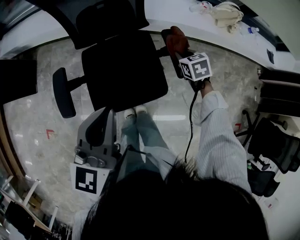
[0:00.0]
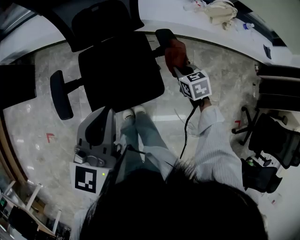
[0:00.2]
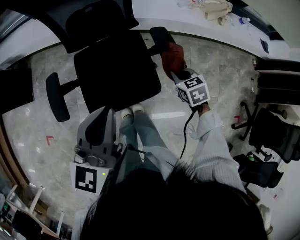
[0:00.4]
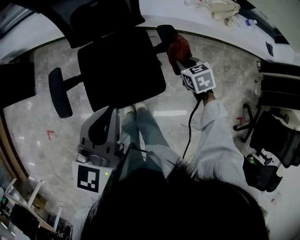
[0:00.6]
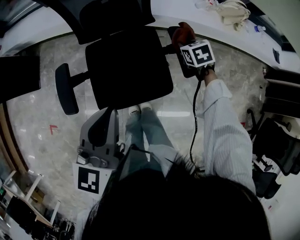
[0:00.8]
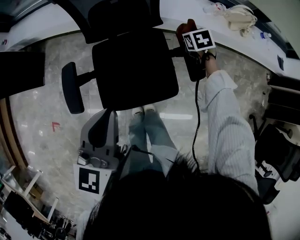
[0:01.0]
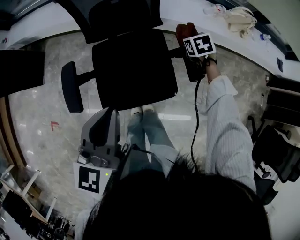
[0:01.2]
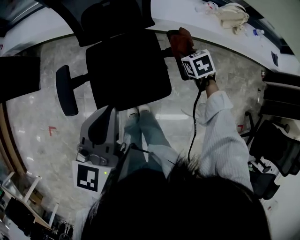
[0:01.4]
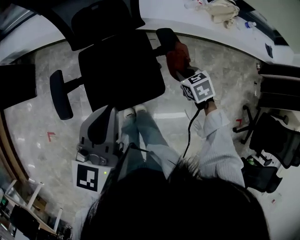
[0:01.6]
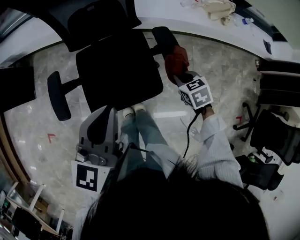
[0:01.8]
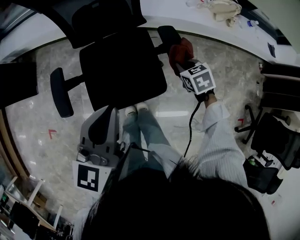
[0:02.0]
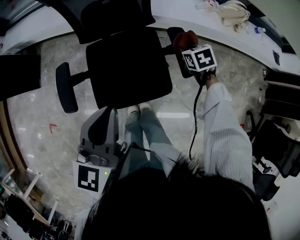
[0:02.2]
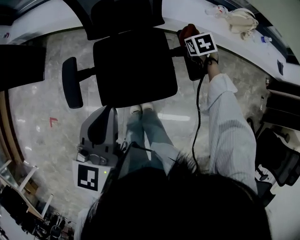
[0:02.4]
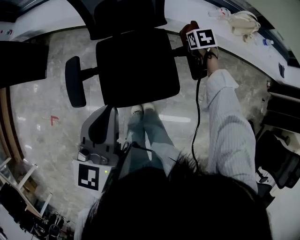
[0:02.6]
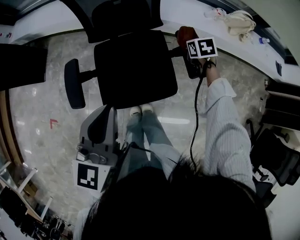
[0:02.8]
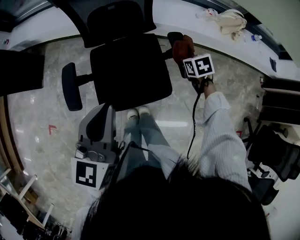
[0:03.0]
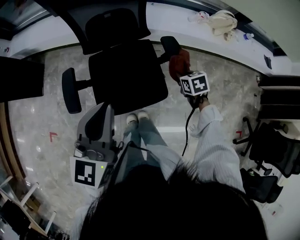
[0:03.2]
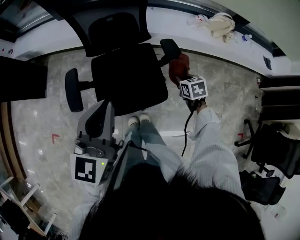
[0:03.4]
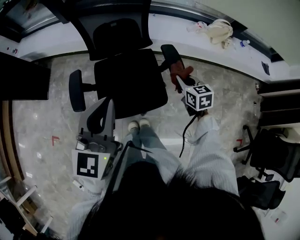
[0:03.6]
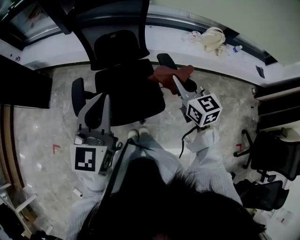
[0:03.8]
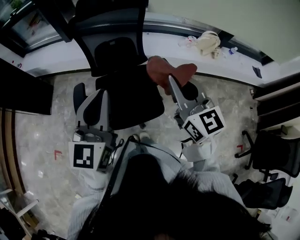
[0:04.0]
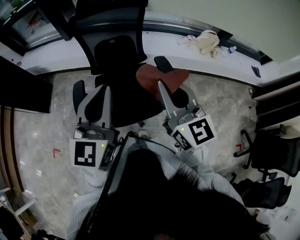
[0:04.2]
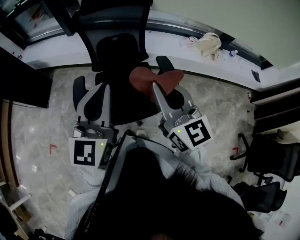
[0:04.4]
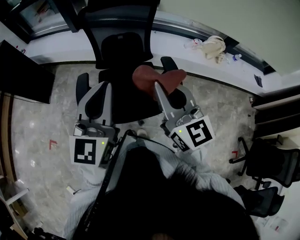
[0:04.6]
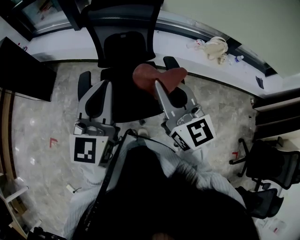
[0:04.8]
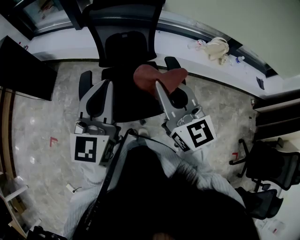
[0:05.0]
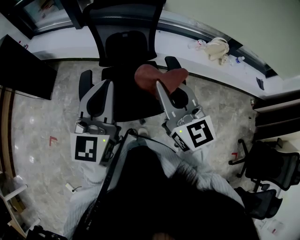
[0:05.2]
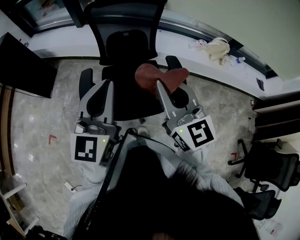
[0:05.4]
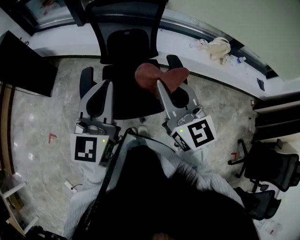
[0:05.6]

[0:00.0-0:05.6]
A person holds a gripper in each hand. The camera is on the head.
0:00.0 to 0:01.4: The right gripper moves forward and backward over some 20 cm, changing direction 2 times.
0:01.4 to 0:02.8: The right gripper moves some 10 cm backward and comes back.
0:02.8 to 0:04.2: The left gripper is displaced upward by some 15 cm, and swivels about 20 degrees. Meanwhile the right gripper goes roughly 50 cm upward and backward, and tips its fingers upward by approximately 60 degrees.
0:04.2 to 0:05.6: The grippers both shift to the left by some 5 cm.

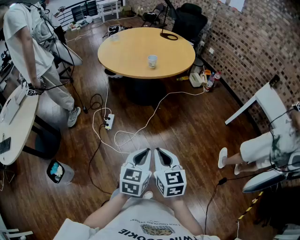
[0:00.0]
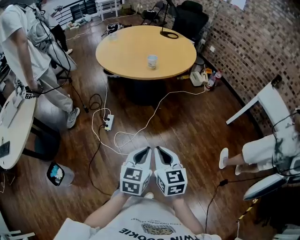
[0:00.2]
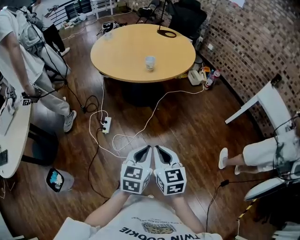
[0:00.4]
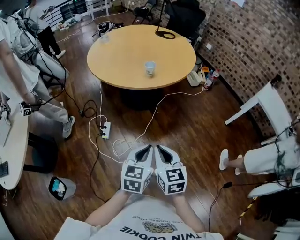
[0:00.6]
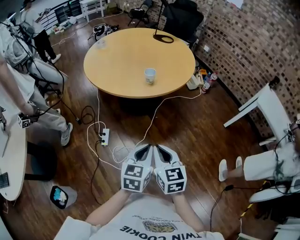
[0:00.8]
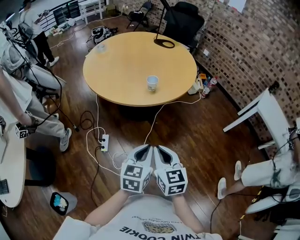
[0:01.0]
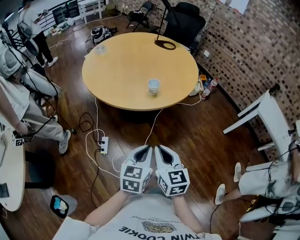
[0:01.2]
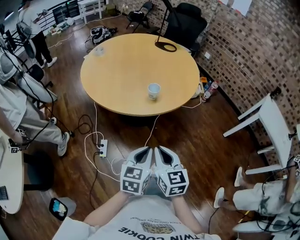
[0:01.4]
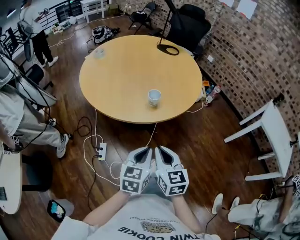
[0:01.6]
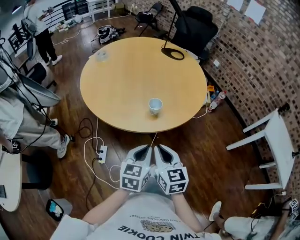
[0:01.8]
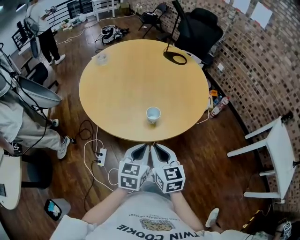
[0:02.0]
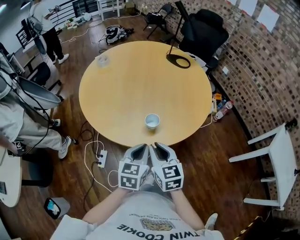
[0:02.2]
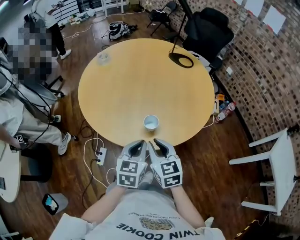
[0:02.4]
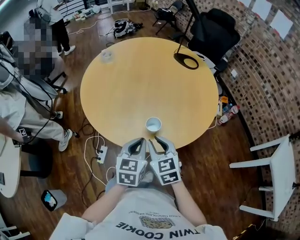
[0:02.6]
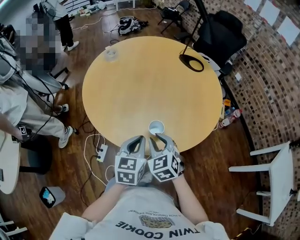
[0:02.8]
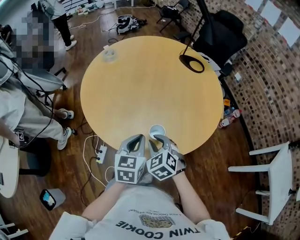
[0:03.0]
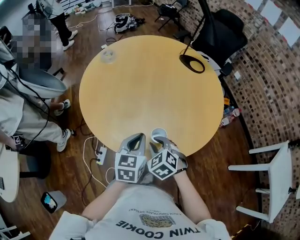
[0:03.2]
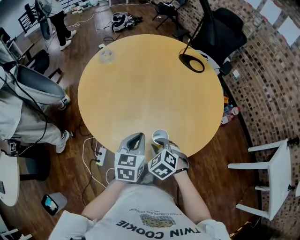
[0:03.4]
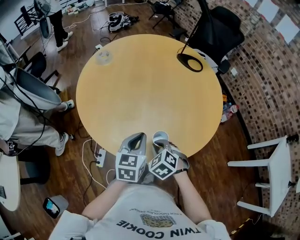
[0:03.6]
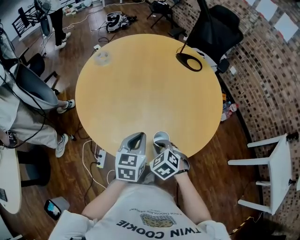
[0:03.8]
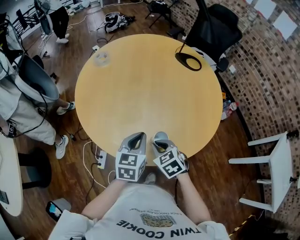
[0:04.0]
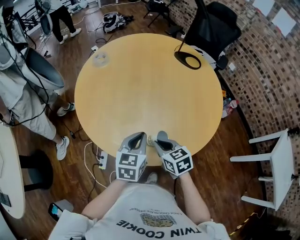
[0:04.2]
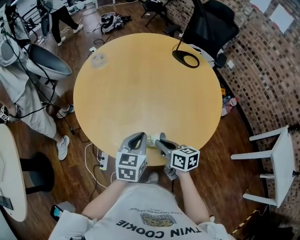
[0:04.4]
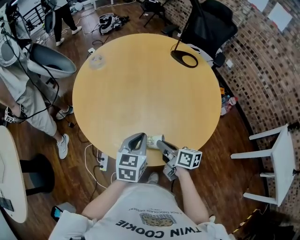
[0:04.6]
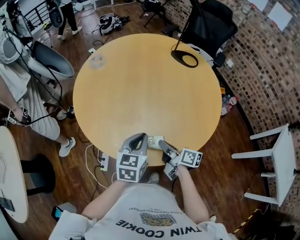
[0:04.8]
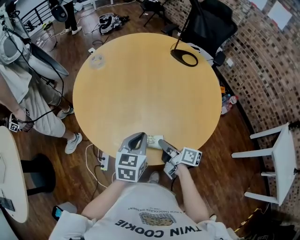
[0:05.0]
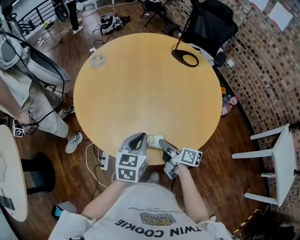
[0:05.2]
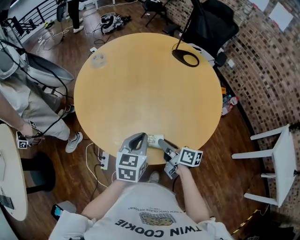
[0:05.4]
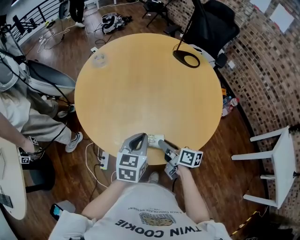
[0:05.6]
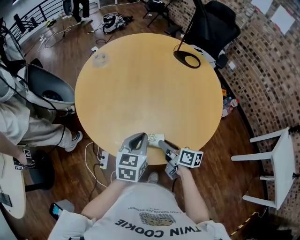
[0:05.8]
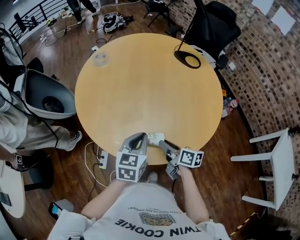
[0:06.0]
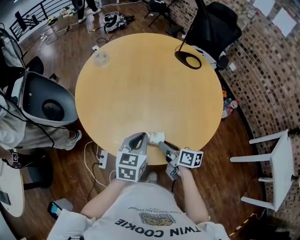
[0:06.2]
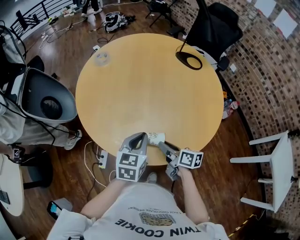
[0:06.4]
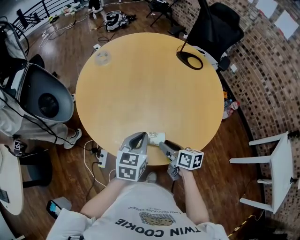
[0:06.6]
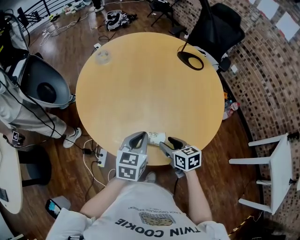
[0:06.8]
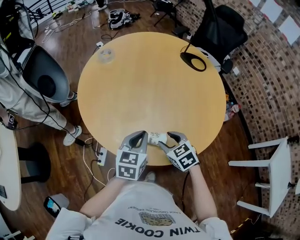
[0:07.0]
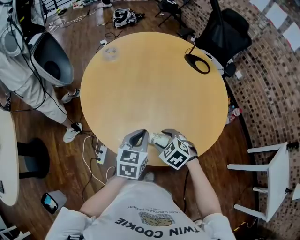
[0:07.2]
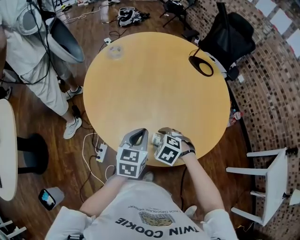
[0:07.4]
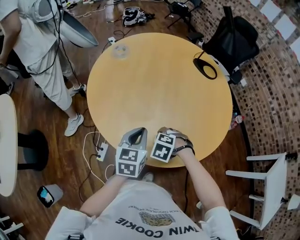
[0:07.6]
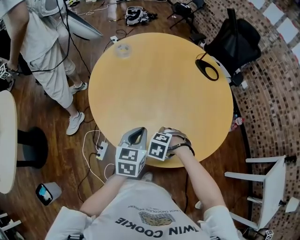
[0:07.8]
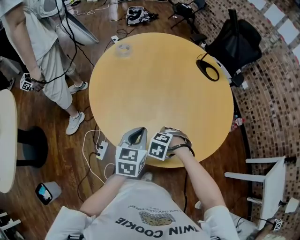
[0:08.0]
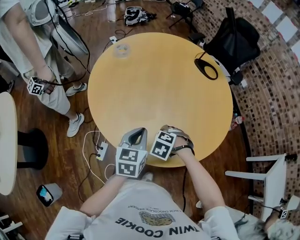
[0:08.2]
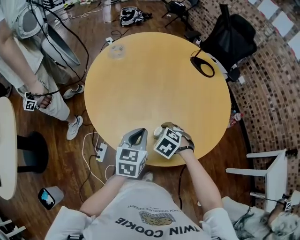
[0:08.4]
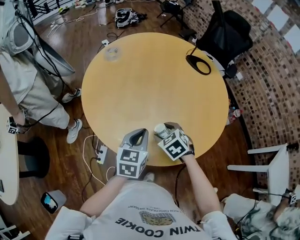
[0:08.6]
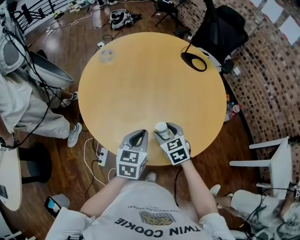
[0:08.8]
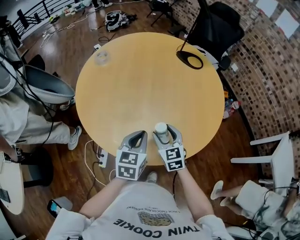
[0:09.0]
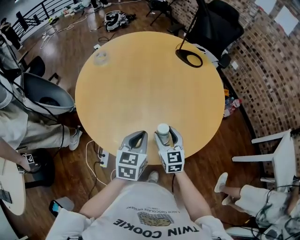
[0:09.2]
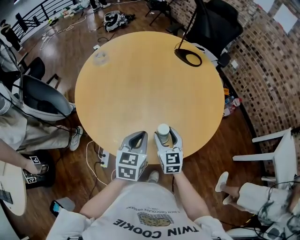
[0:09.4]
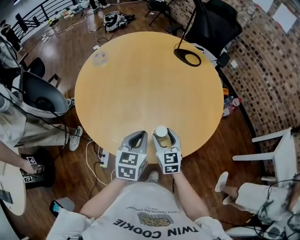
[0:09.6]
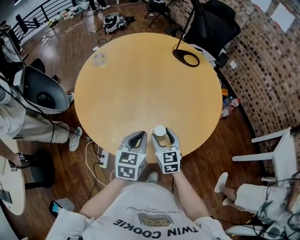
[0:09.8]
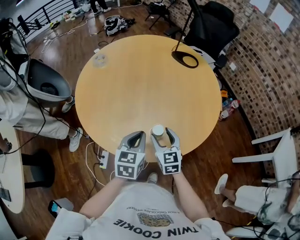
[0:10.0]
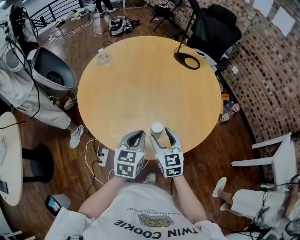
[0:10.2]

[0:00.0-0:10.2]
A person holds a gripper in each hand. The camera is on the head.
0:00.0 to 0:01.4: Both grippers move forward, some 35 cm.
0:01.4 to 0:03.0: The two grippers go approximately 35 cm forward. The right gripper rotates around the line of its fingers by some 40 degrees, counterclockwise from behind. Meanwhile the left gripper rotates about 20 degrees.
0:03.0 to 0:04.4: The right gripper shifts by approximately 5 cm, and twists roughly 60 degrees clockwise, seen from behind. The left gripper moves forward, roughly 5 cm.
0:04.4 to 0:05.8: The right gripper rotates roughly 20 degrees.
0:05.8 to 0:07.2: The right gripper shifts about 5 cm to the left, rolls counterclockwise, seen from behind, by approximately 80 degrees, and opens.
0:07.2 to 0:08.8: The right gripper changes its angle by roughly 30 degrees.
0:08.8 to 0:10.2: The right gripper is displaced backward by roughly 5 cm, and rotates some 20 degrees; the left gripper moves some 5 cm.

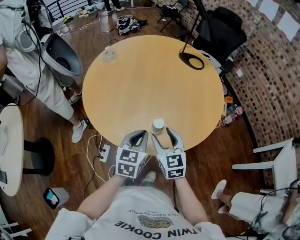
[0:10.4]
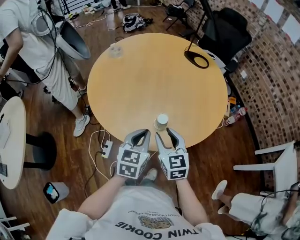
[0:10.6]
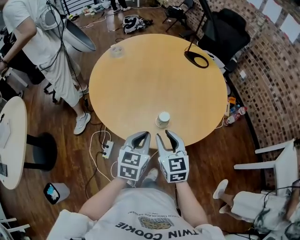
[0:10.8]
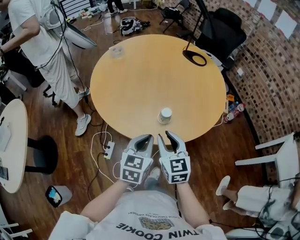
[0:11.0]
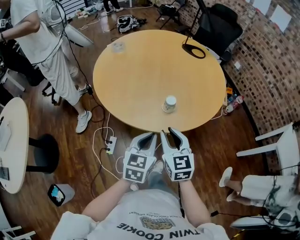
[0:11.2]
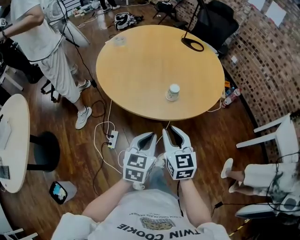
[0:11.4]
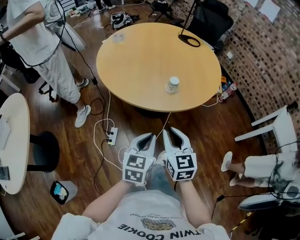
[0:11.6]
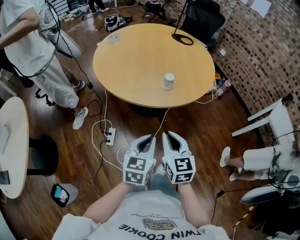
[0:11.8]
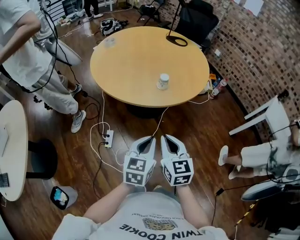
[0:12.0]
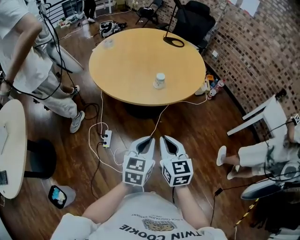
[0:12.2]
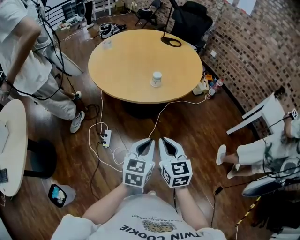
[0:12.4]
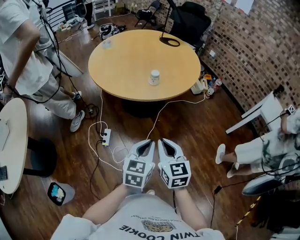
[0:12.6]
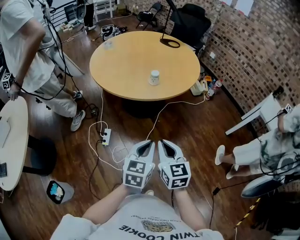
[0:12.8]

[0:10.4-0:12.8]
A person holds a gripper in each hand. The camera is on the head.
0:10.4 to 0:11.6: The grippers both shift backward by roughly 25 cm. The right gripper closes up.
0:11.6 to 0:12.8: The right gripper goes some 20 cm backward and to the right; the left gripper moves backward, to the right and upward, roughly 20 cm.

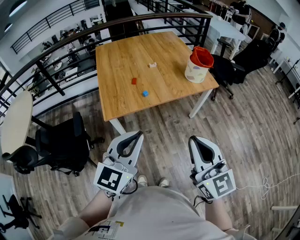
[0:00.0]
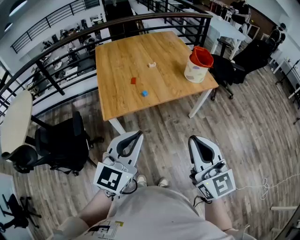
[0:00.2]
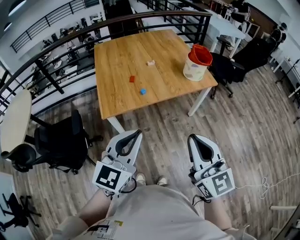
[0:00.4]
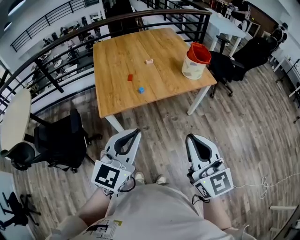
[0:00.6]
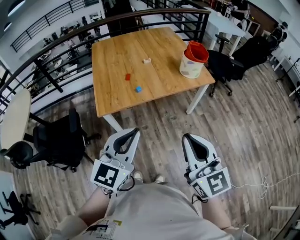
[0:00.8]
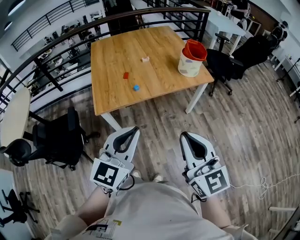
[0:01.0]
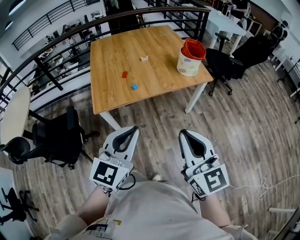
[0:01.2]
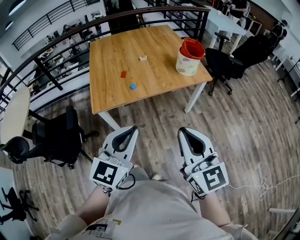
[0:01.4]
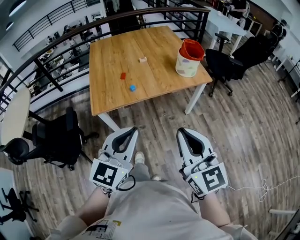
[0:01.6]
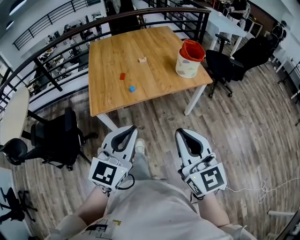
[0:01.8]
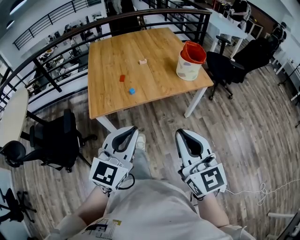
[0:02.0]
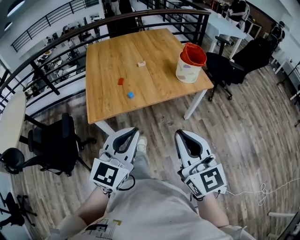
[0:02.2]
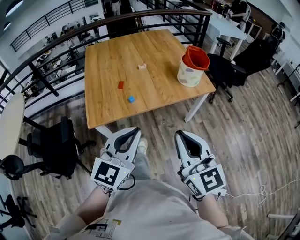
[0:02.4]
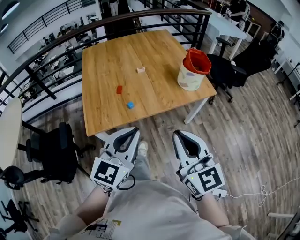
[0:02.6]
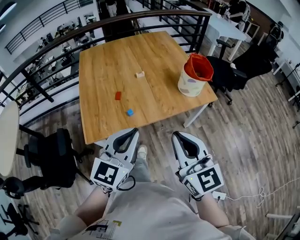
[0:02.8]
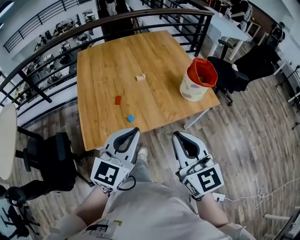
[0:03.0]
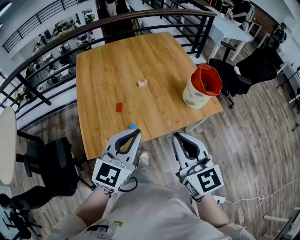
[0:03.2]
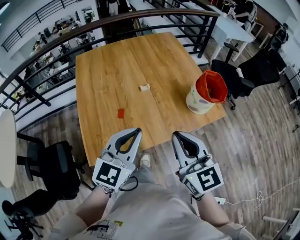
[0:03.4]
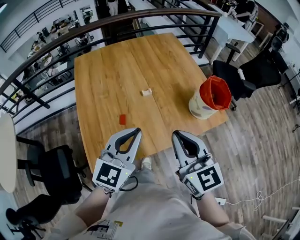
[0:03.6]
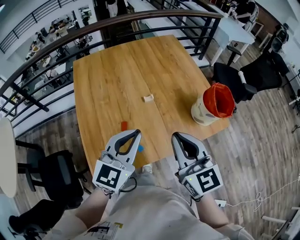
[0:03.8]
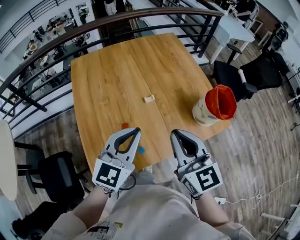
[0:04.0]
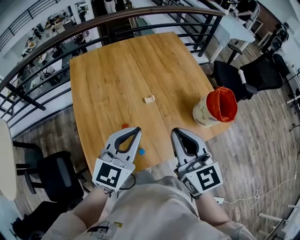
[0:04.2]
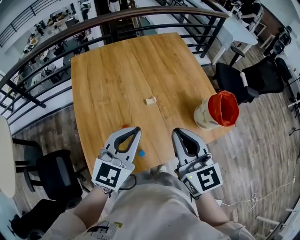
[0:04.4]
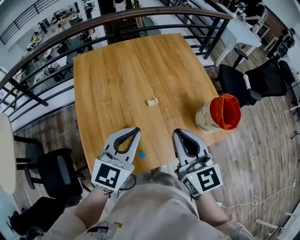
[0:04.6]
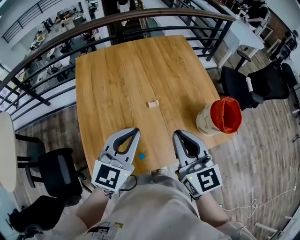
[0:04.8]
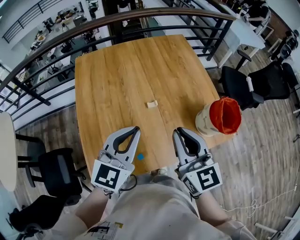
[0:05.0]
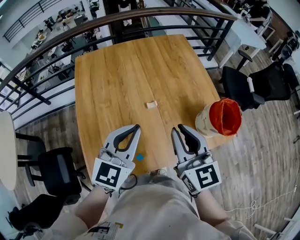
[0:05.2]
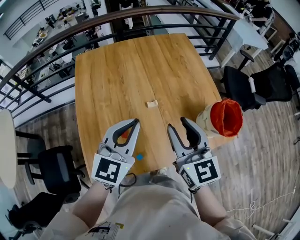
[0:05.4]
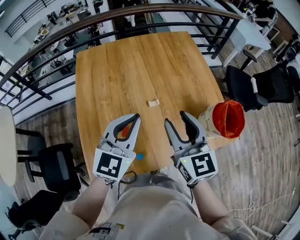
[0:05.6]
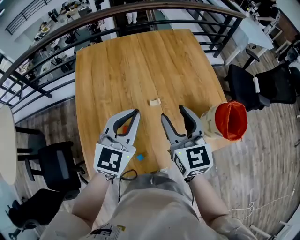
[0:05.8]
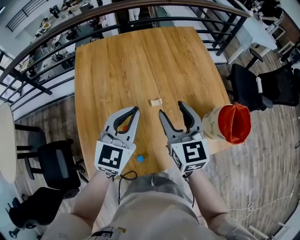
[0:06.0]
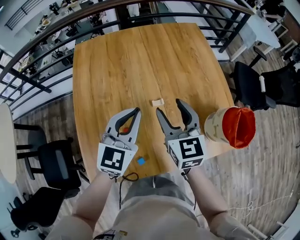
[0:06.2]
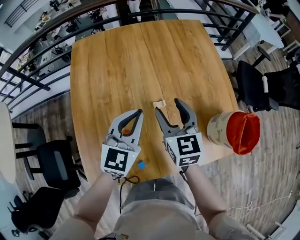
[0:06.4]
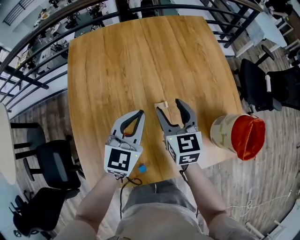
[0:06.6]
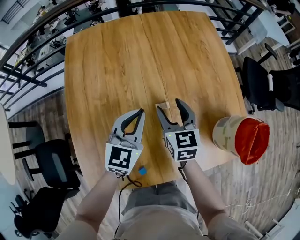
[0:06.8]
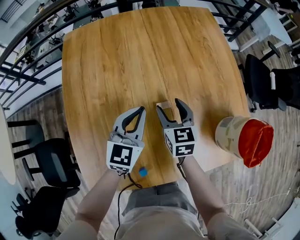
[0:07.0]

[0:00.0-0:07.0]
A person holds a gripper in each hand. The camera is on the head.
0:00.0 to 0:01.4: The two grippers go approximately 10 cm to the right.
0:01.4 to 0:02.8: The two grippers go approximately 20 cm forward.
0:02.8 to 0:04.2: Both grippers move forward, about 30 cm.
0:04.2 to 0:05.6: Both grippers move forward, approximately 10 cm. The right gripper opens.
0:05.6 to 0:07.0: Both grippers travel together downward and forward, roughly 30 cm. The right gripper rotates some 20 degrees.
